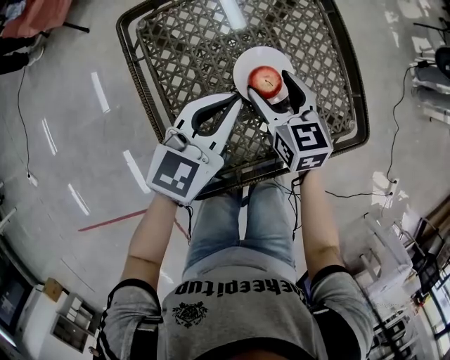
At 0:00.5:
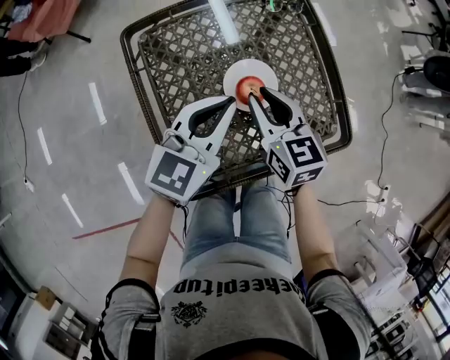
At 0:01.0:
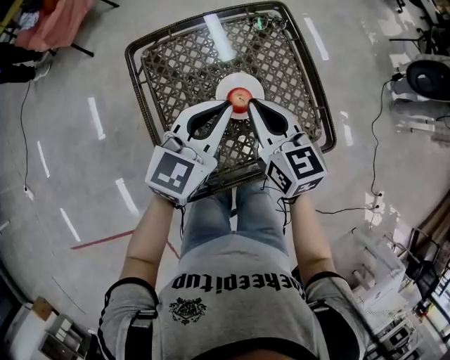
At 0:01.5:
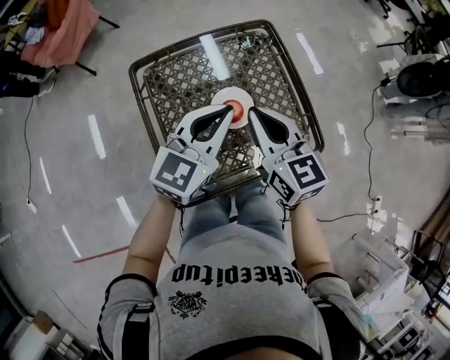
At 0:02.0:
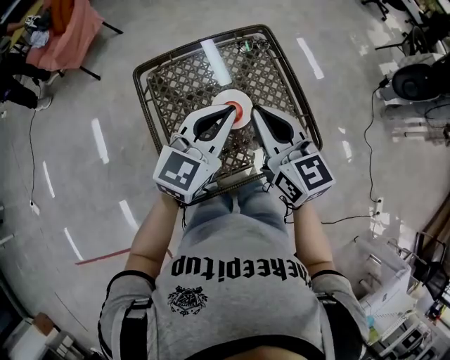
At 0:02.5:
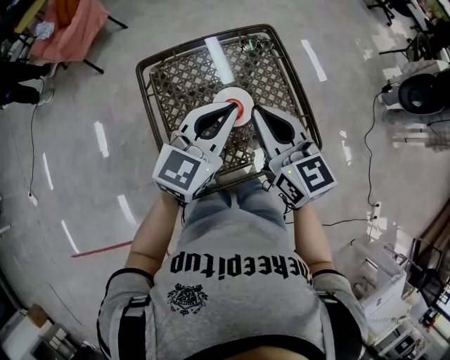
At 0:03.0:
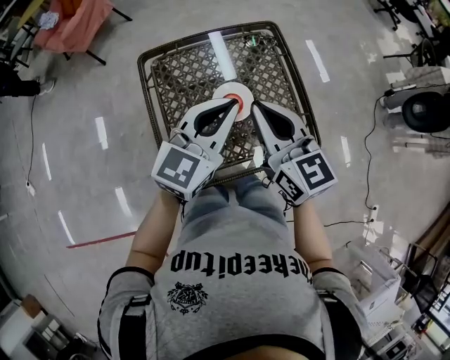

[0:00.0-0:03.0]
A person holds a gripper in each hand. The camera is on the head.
0:00.0 to 0:01.5: Both grippers travel together upward, approximately 20 cm. The right gripper closes.
0:01.5 to 0:03.0: The left gripper changes place by about 5 cm. The right gripper shifts roughly 5 cm upward.

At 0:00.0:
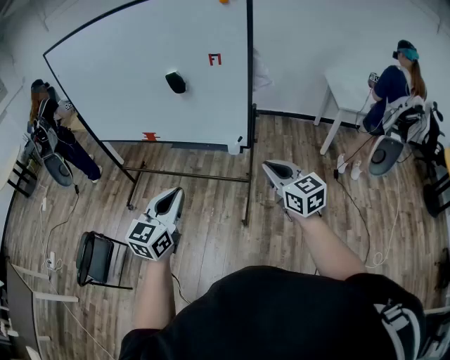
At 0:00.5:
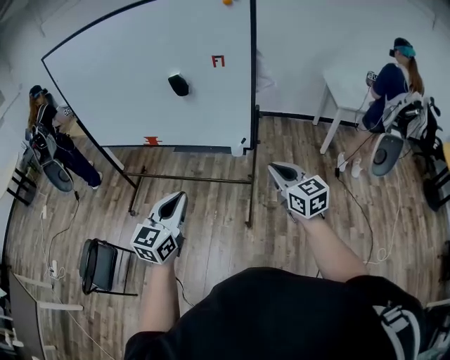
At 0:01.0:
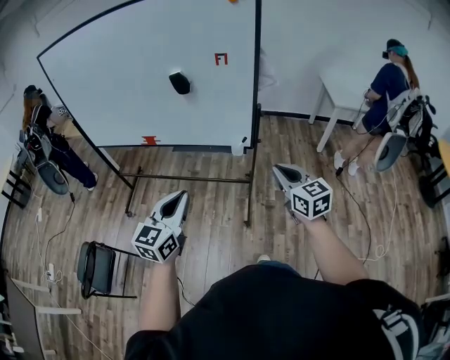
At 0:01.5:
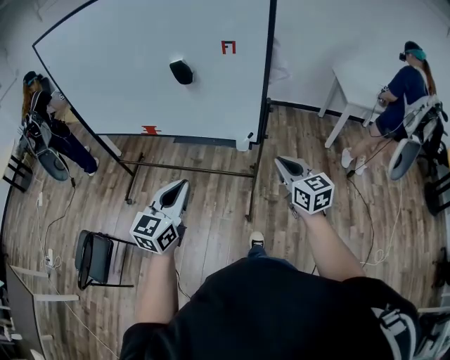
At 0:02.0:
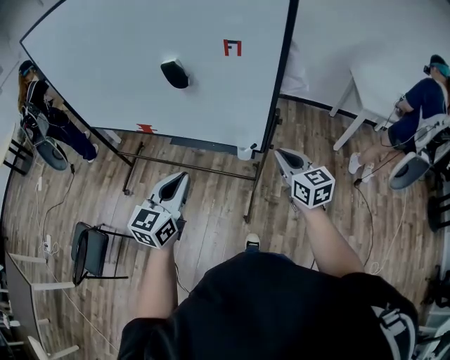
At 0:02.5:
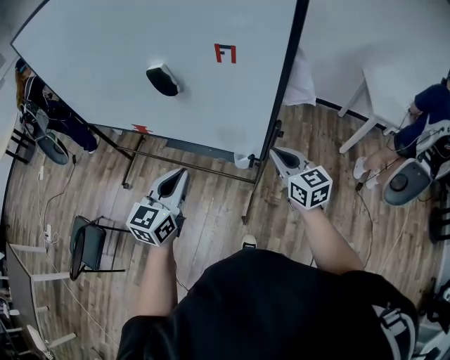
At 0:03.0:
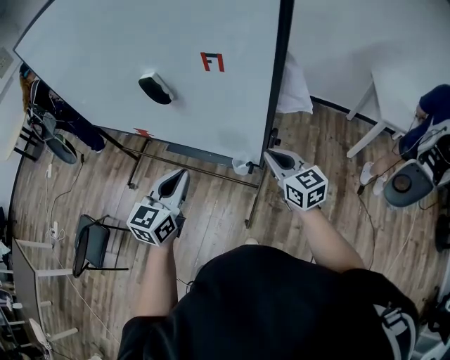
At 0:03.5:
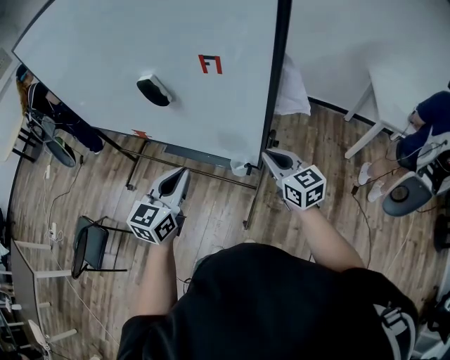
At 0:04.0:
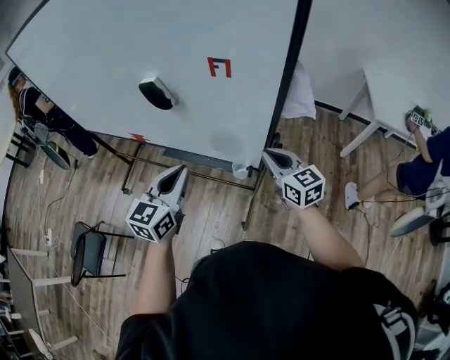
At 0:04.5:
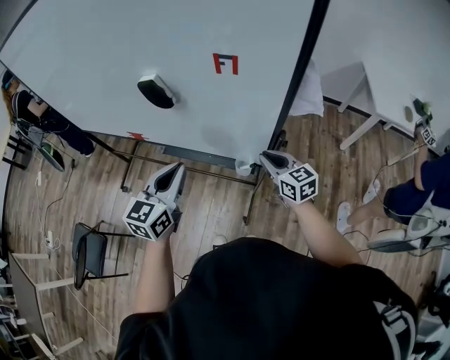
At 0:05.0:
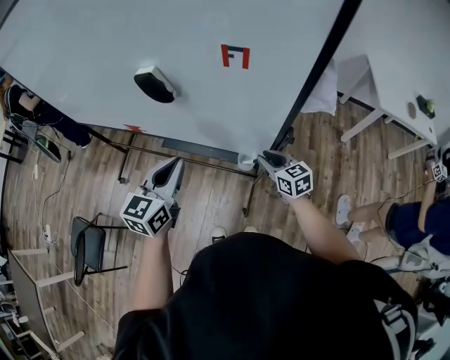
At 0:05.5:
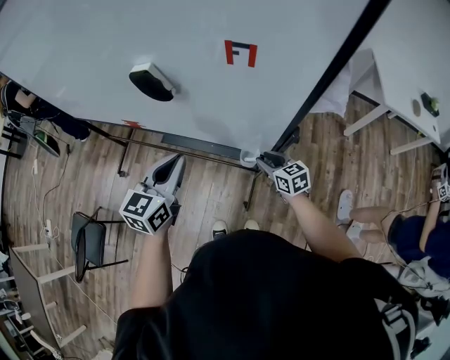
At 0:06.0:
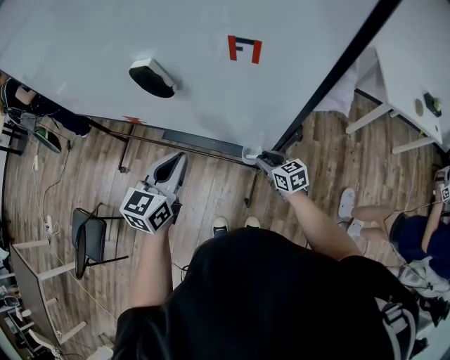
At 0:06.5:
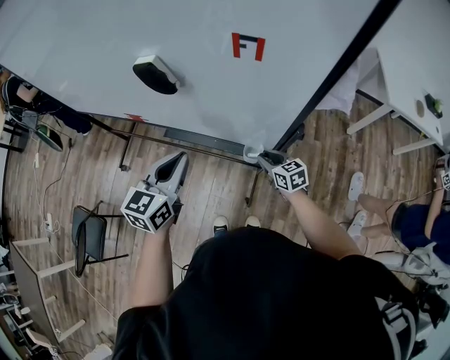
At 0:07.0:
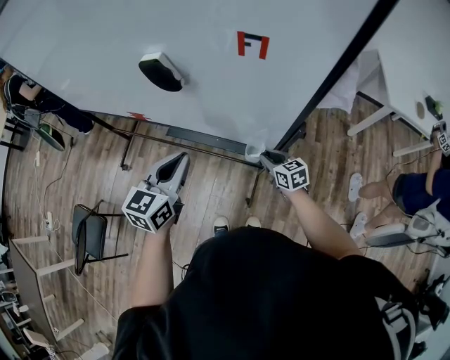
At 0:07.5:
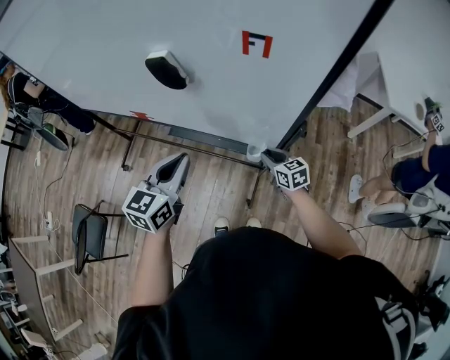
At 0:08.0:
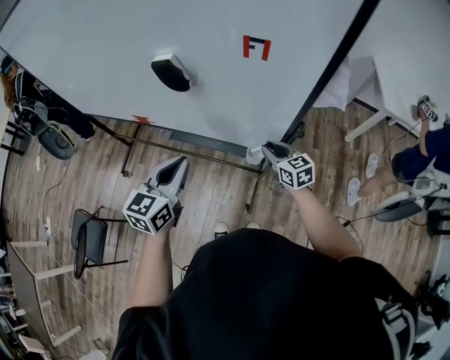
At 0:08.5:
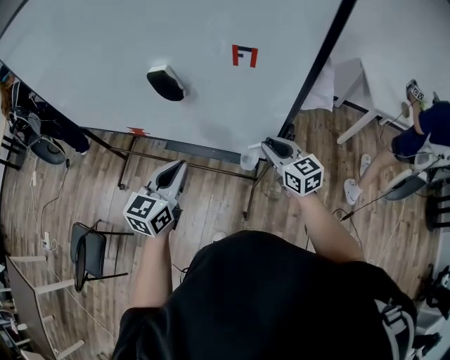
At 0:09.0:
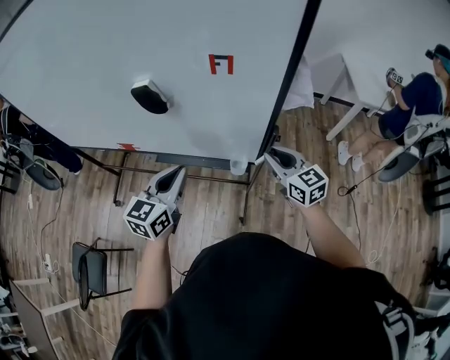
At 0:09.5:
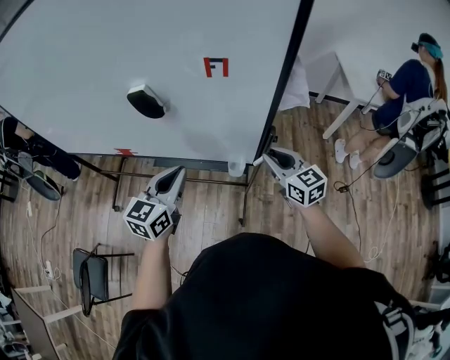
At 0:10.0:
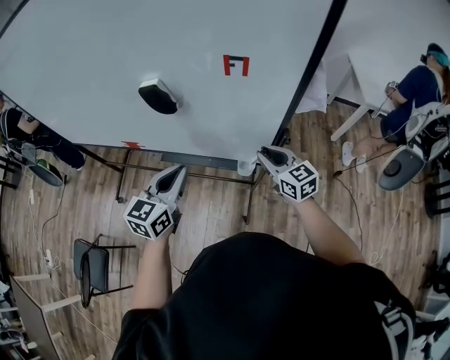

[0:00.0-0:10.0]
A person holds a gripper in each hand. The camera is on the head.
0:00.0 to 0:02.0: The two grippers go about 20 cm forward.
0:02.0 to 0:04.0: The two grippers go roughly 15 cm forward.
0:04.0 to 0:06.0: The right gripper heads downward, covering some 25 cm, swivels roughly 20 degrees, and opens its fingers. Meanwhile the left gripper is displaced forward and downward by roughly 10 cm.
0:06.0 to 0:08.0: The right gripper travels upward by roughly 10 cm.
0:08.0 to 0:10.0: The right gripper moves upward, some 10 cm.

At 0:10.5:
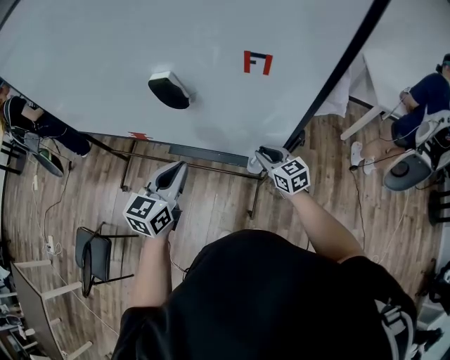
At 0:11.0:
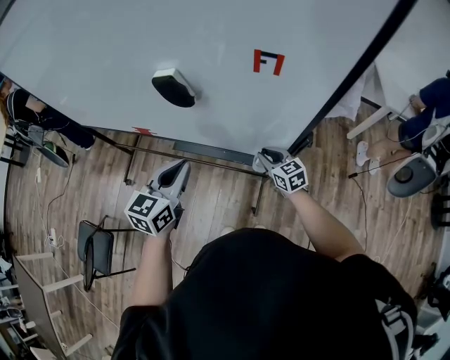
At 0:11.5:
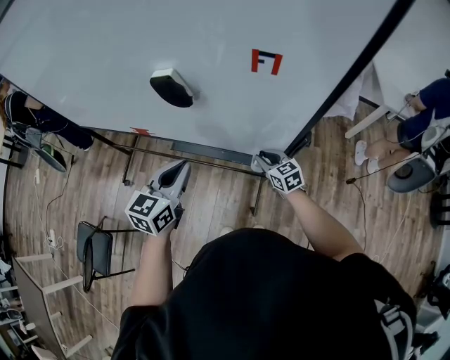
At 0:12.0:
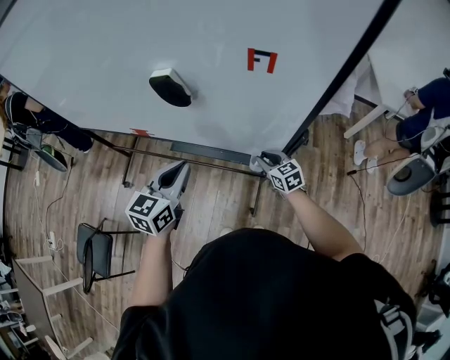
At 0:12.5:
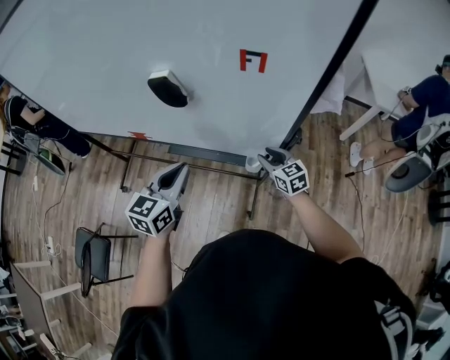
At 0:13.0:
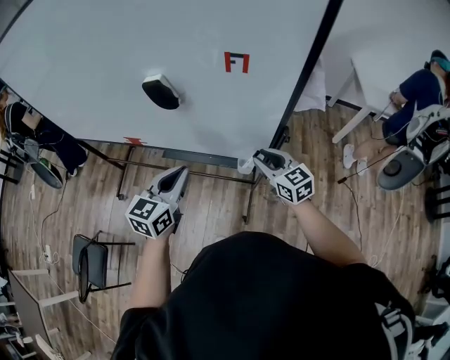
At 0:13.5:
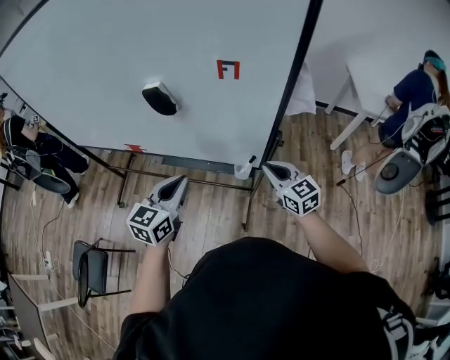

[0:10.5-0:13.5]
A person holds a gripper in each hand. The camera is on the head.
0:10.5 to 0:12.0: The right gripper goes some 10 cm downward.
0:12.0 to 0:13.5: The left gripper heads backward, covering approximately 5 cm, while the right gripper heads upward and backward, covering some 20 cm.

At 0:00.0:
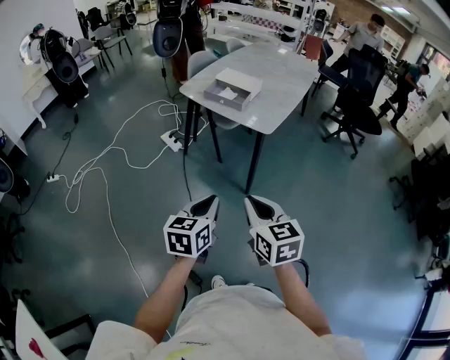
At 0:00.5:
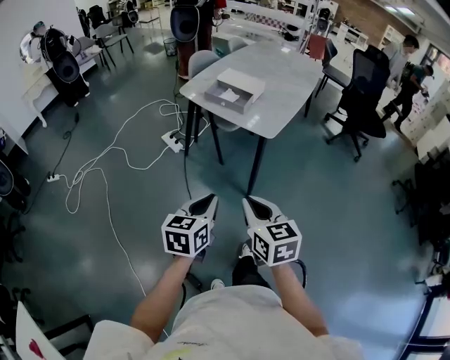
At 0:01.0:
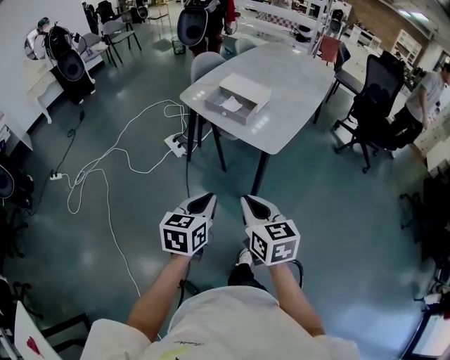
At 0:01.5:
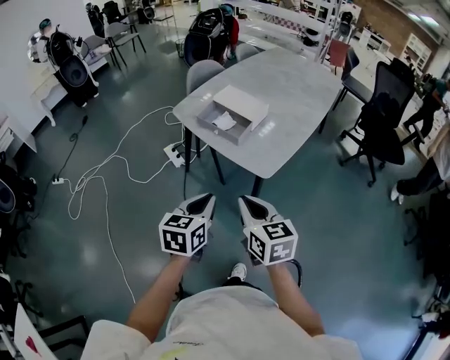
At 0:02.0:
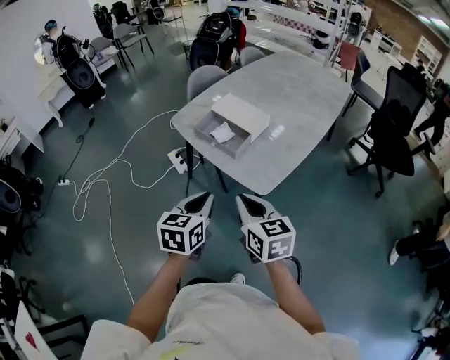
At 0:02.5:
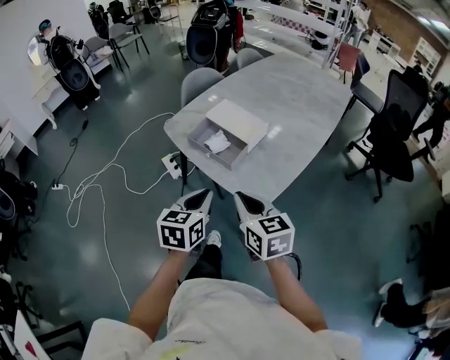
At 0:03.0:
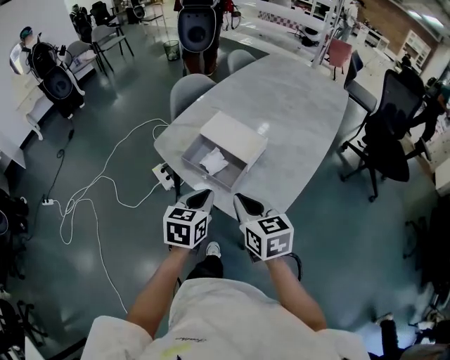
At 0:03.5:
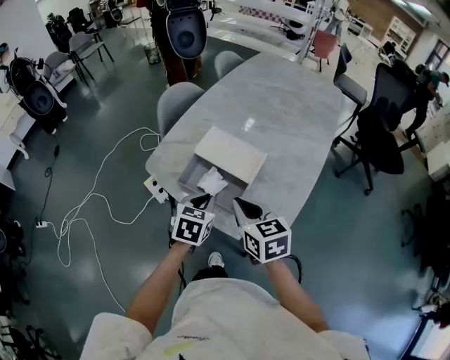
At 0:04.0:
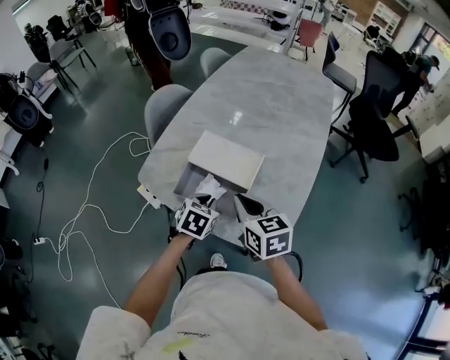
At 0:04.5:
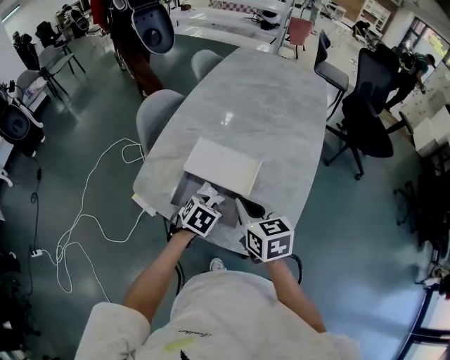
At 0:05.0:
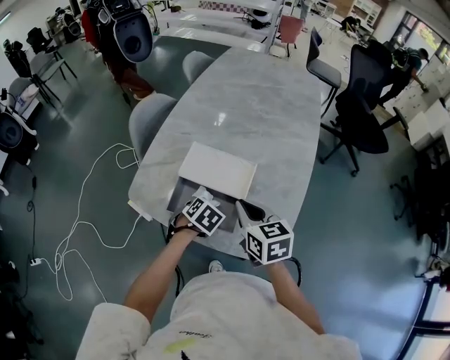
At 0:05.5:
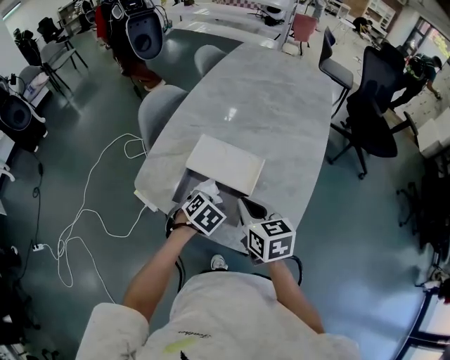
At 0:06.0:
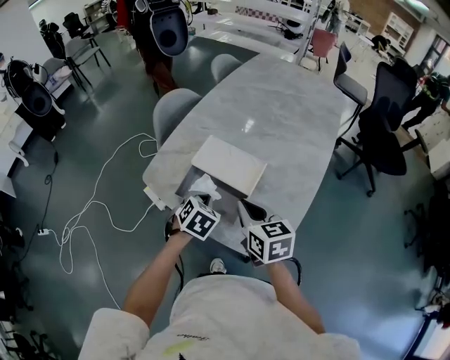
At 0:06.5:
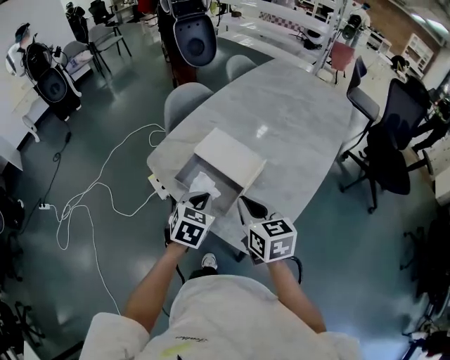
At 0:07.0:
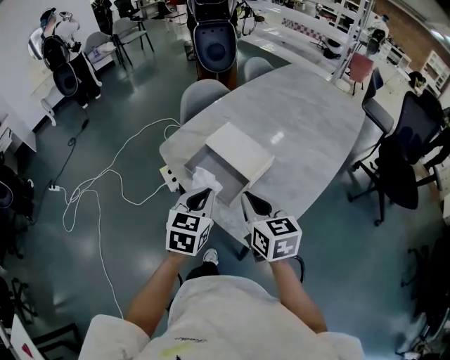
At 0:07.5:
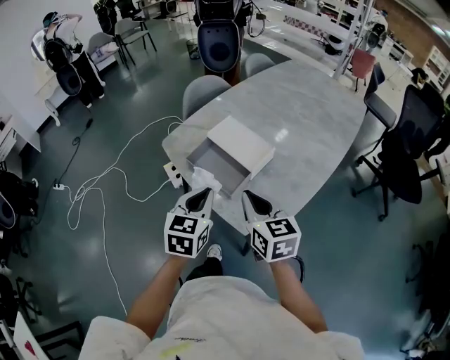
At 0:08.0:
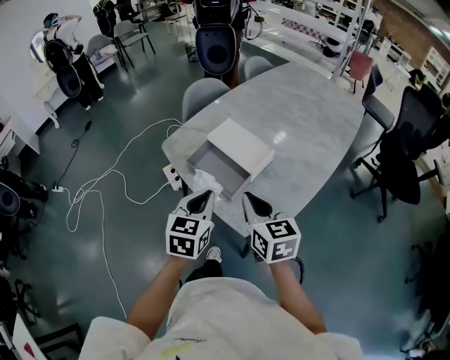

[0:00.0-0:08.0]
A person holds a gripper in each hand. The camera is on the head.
0:00.0 to 0:02.0: Both grippers move forward, some 35 cm.
0:02.0 to 0:04.0: The grippers both shift forward by about 30 cm. The left gripper turns by roughly 40 degrees.
0:06.0 to 0:08.0: The left gripper moves backward and upward, about 20 cm, and swivels approximately 40 degrees. Meanwhile the right gripper shifts some 10 cm backward.

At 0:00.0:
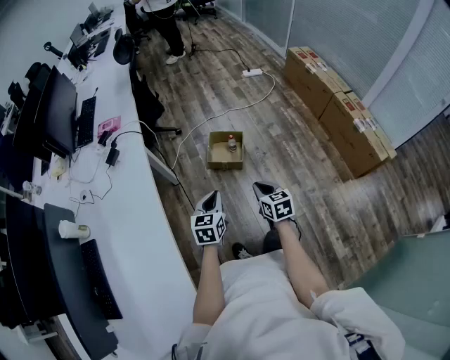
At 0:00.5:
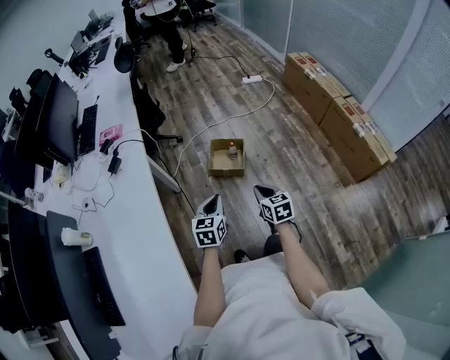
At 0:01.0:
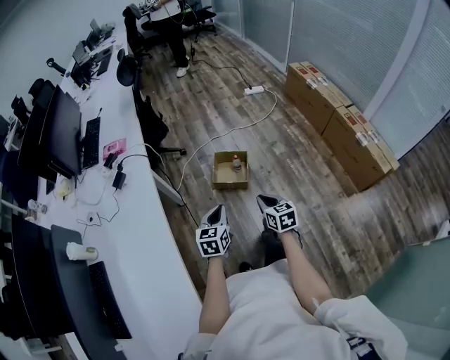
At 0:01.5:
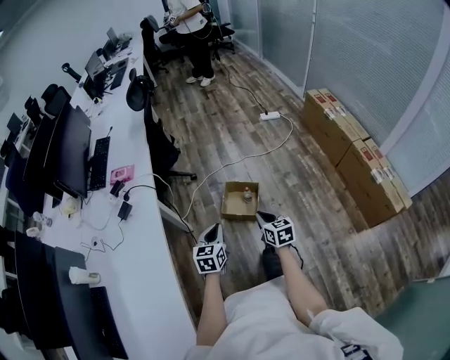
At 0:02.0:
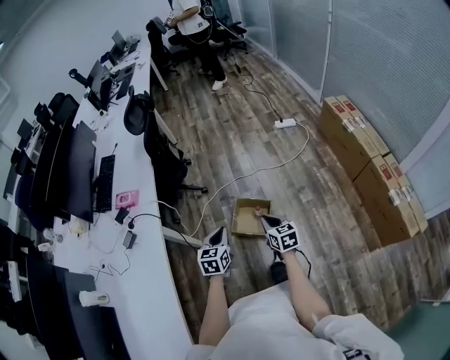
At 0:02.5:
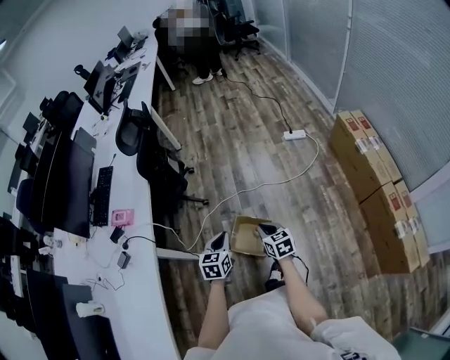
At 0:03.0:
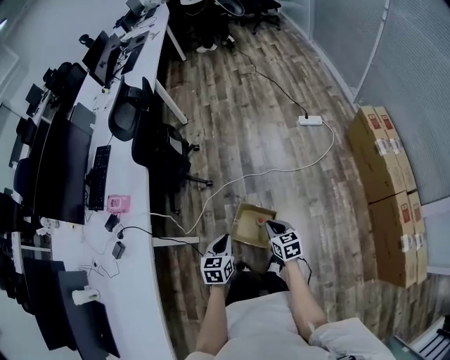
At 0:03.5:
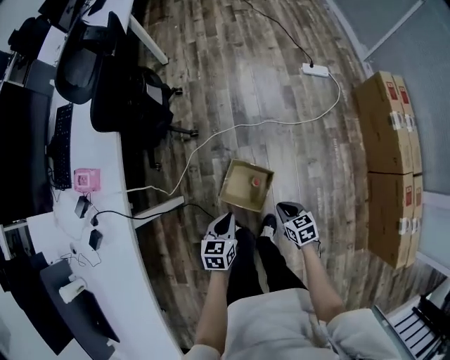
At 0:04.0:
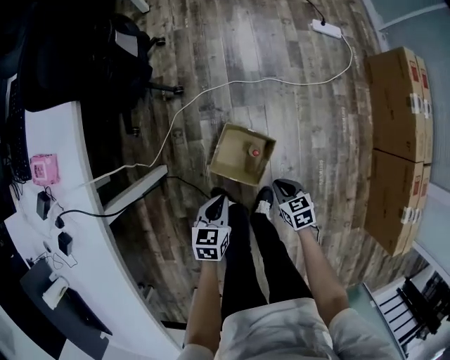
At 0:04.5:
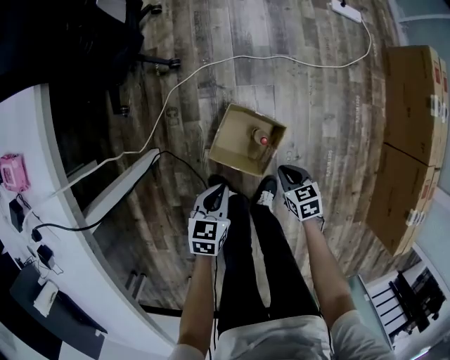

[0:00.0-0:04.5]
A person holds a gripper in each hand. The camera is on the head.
0:00.0 to 0:02.0: The grippers both shift forward by some 35 cm.
0:02.0 to 0:04.5: The two grippers go approximately 50 cm downward and forward. The left gripper turns by some 20 degrees; the right gripper rotates roughly 30 degrees.
